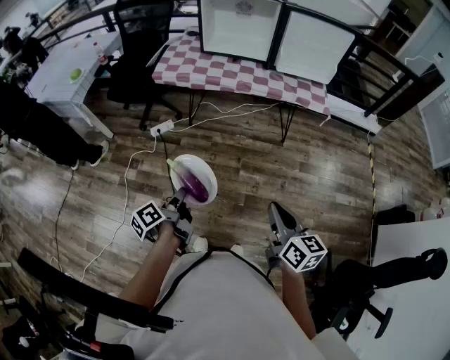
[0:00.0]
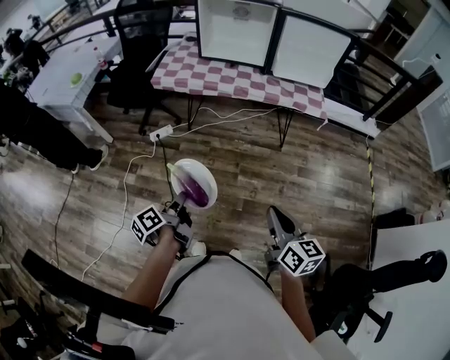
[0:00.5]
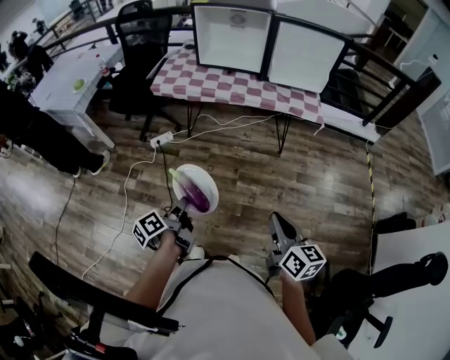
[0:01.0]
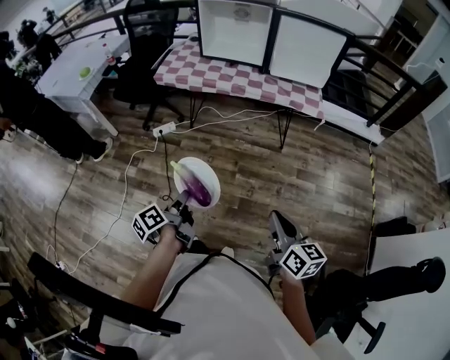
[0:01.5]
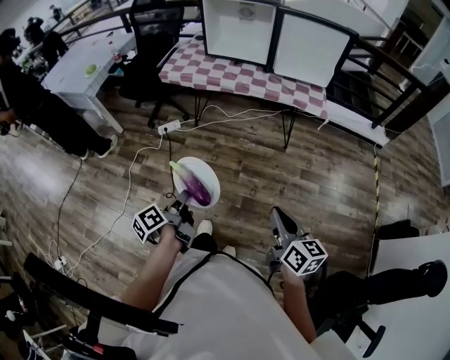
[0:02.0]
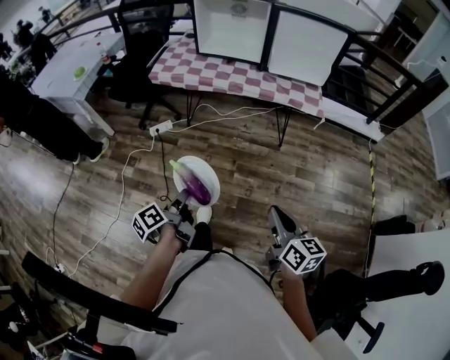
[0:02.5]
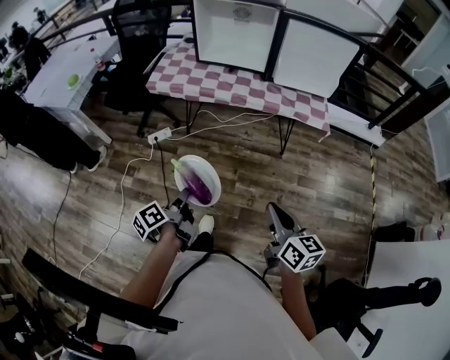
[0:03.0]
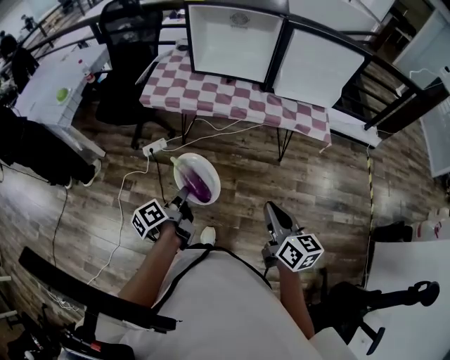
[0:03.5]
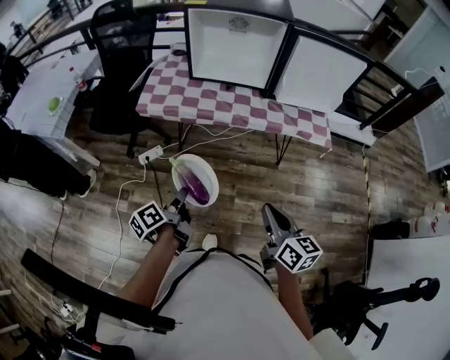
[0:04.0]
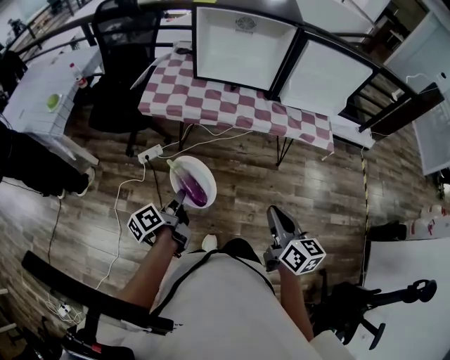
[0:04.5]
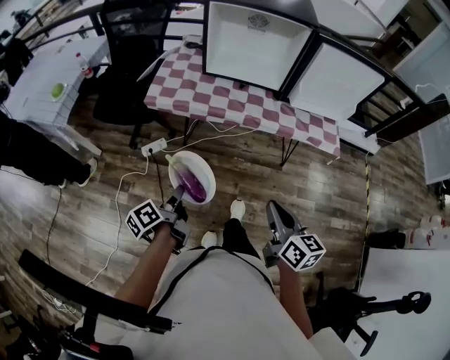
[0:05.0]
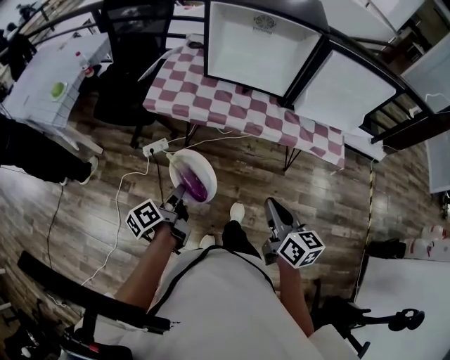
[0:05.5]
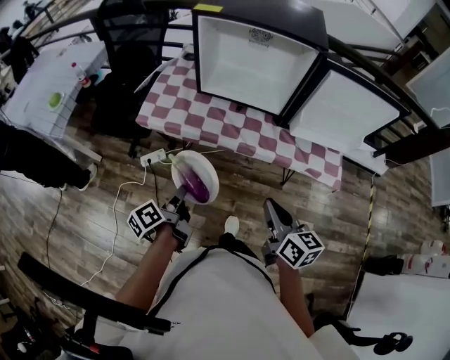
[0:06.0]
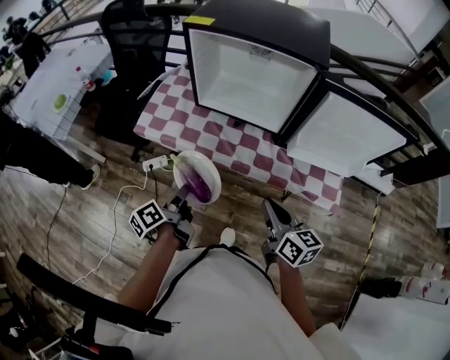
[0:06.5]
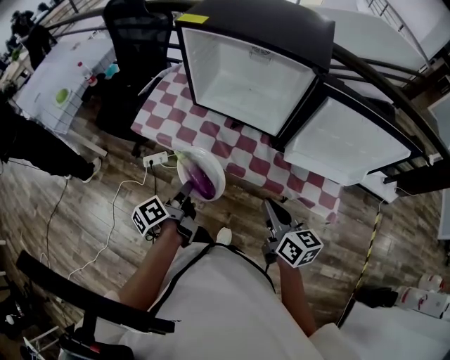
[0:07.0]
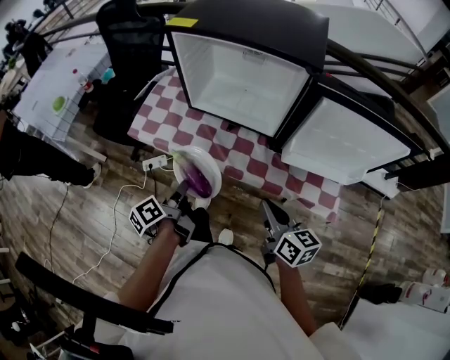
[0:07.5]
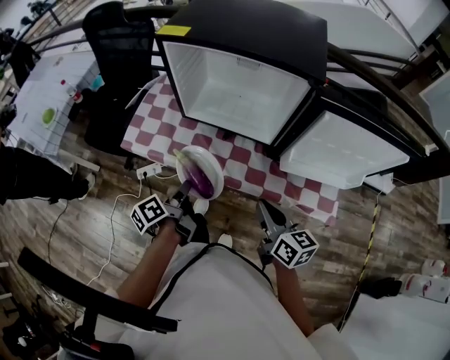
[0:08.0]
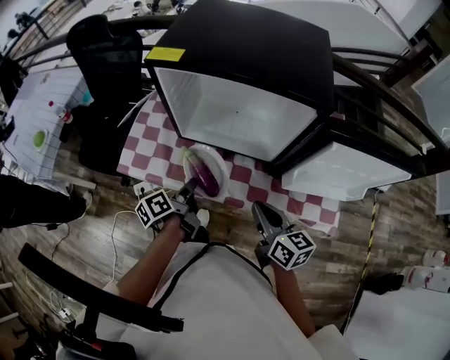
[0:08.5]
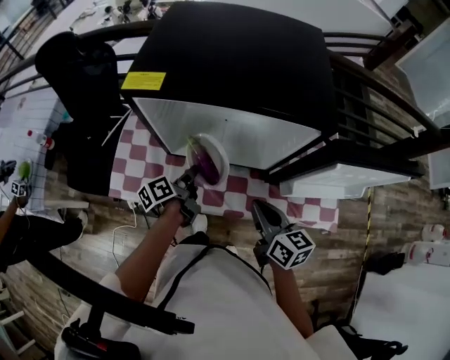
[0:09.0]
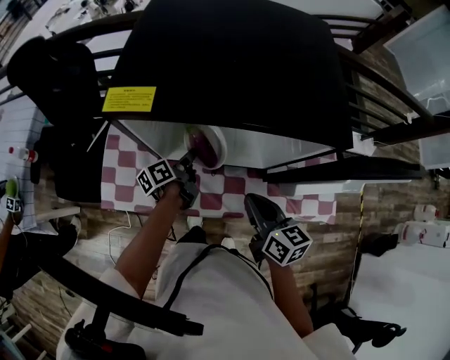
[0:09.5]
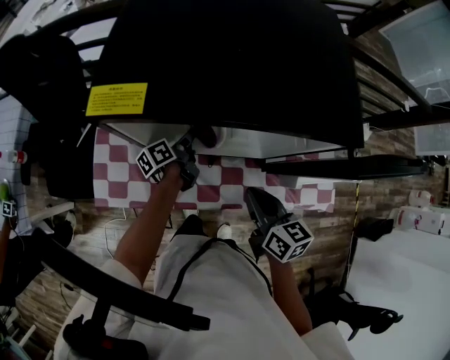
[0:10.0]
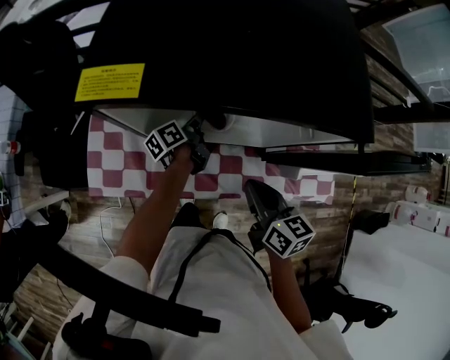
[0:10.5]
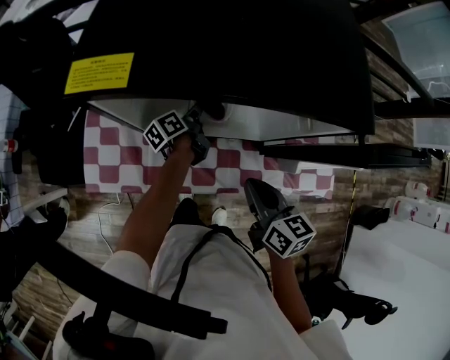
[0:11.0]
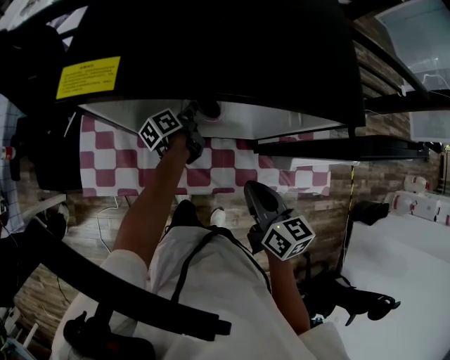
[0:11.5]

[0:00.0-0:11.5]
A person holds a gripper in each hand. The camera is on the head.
0:00.0 to 0:02.0: The right gripper moves roughly 10 cm.
0:02.0 to 0:04.0: The right gripper moves some 30 cm.
0:04.0 to 0:06.0: The right gripper moves approximately 20 cm.
0:06.0 to 0:07.5: The right gripper shifts by approximately 15 cm.
0:07.5 to 0:09.5: The right gripper ends up roughly 25 cm from where it was.

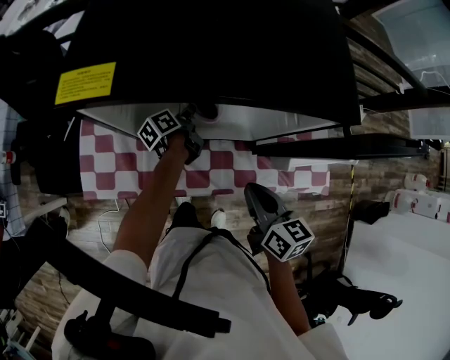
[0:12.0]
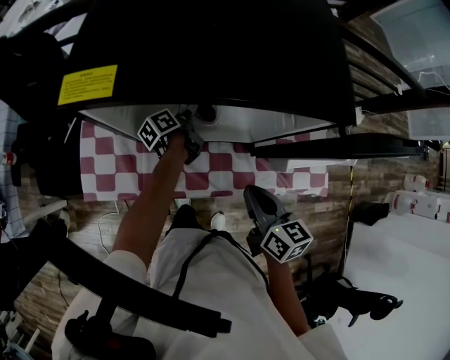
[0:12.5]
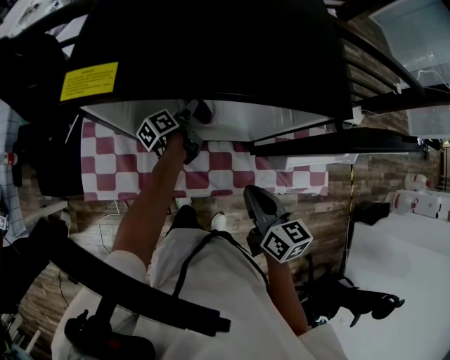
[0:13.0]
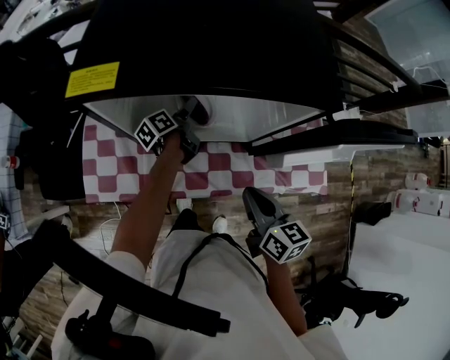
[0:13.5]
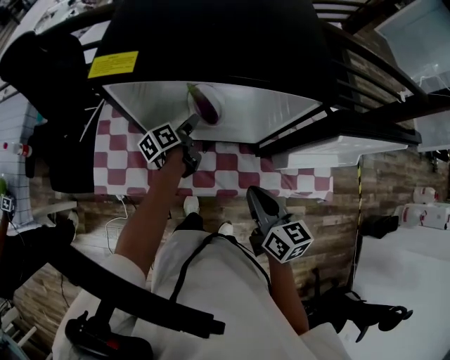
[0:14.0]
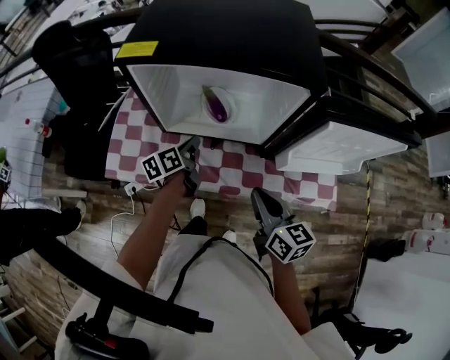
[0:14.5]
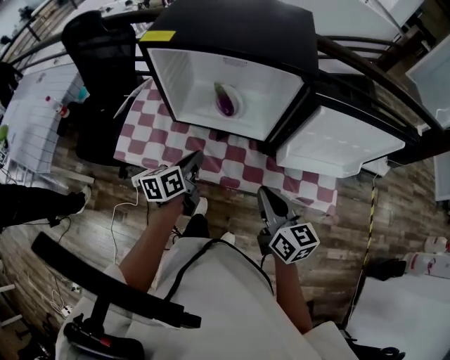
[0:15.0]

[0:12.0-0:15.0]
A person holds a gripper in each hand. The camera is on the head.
0:13.5 to 0:15.0: The right gripper moves roughly 10 cm.

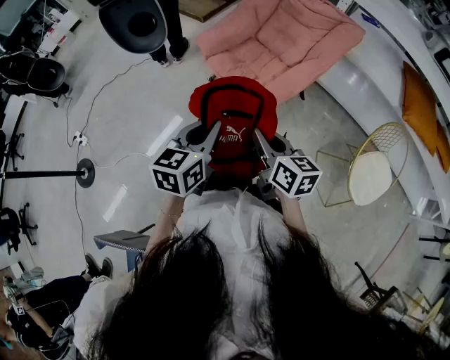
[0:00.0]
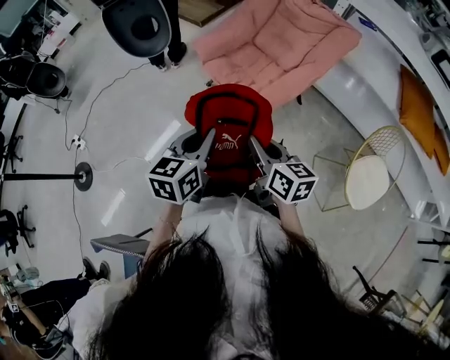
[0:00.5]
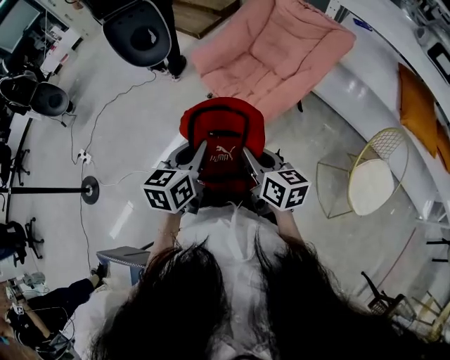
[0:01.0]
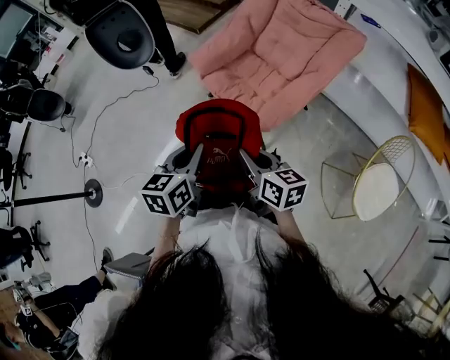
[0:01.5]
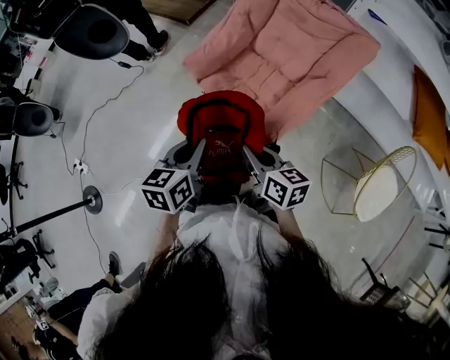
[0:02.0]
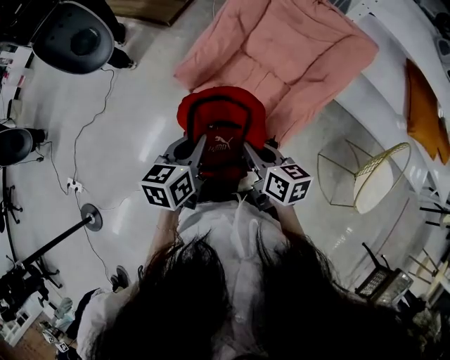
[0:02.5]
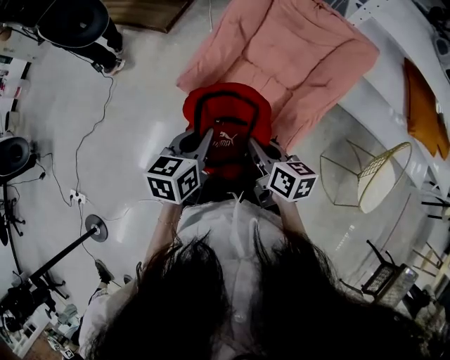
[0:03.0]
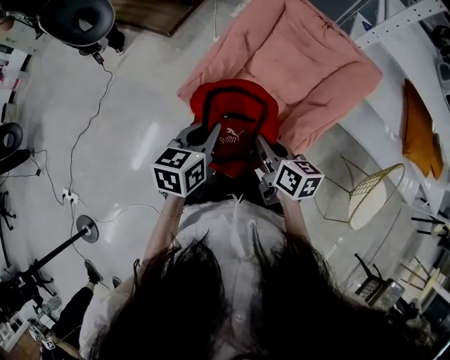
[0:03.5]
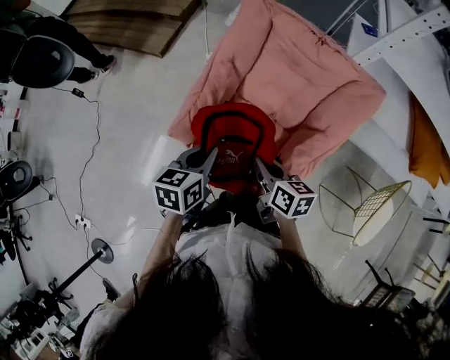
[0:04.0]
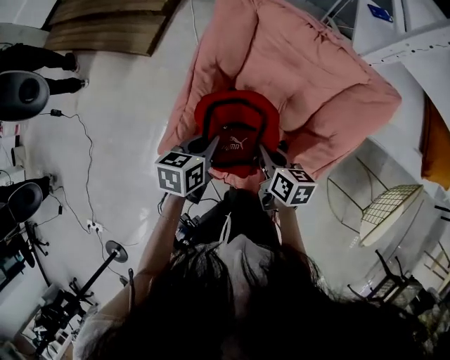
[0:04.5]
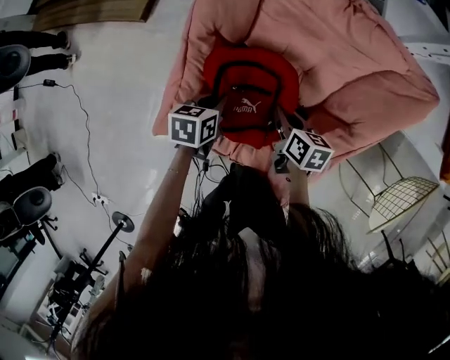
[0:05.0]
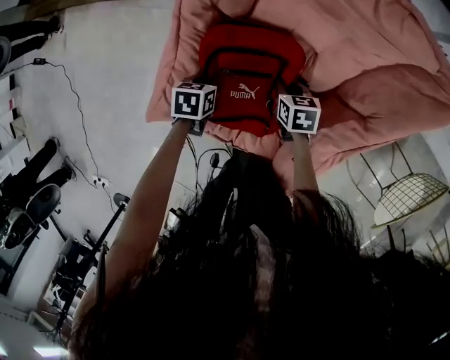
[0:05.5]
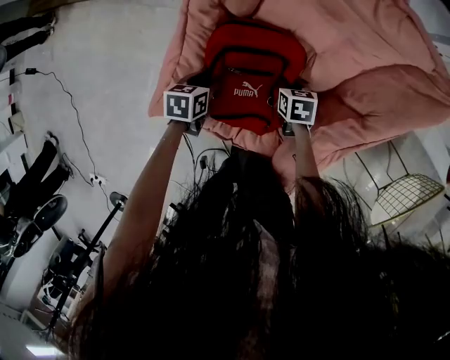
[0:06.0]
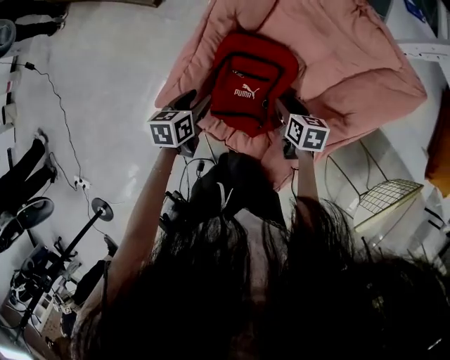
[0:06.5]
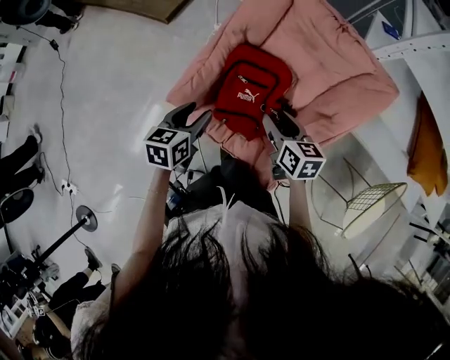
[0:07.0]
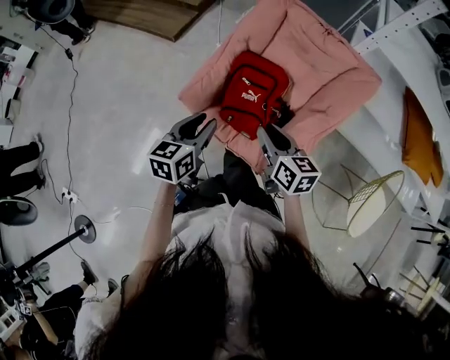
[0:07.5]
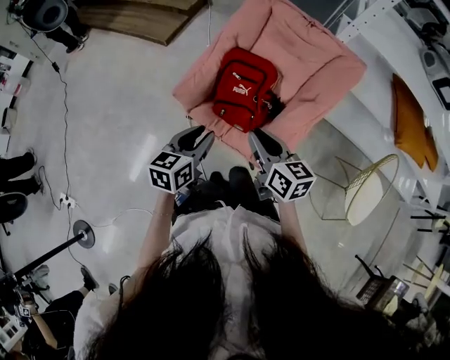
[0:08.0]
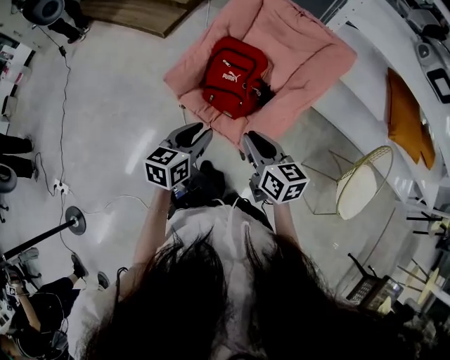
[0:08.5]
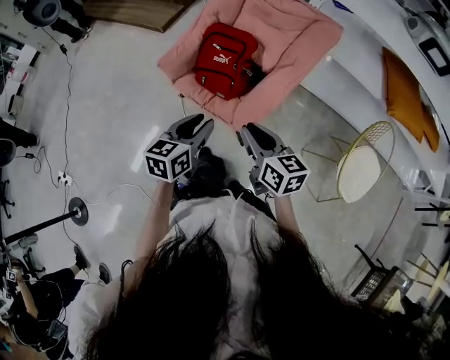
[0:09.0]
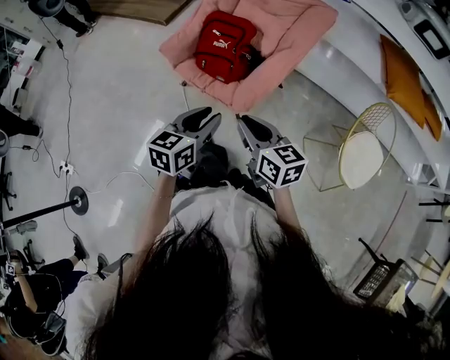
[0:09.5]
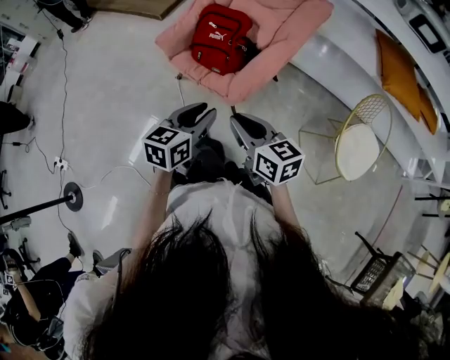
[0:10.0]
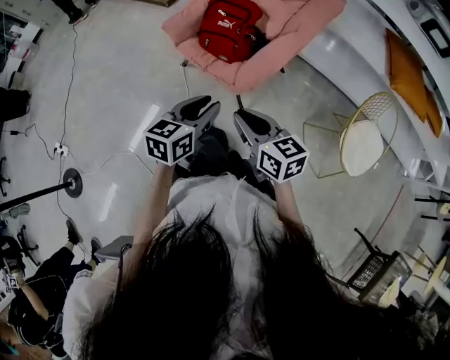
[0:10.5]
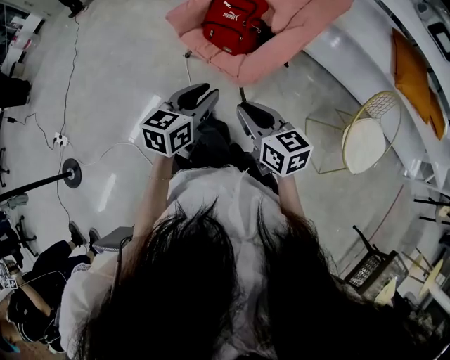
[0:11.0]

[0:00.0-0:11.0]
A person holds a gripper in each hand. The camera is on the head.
0:00.0 to 0:02.0: Both grippers travel together forward, roughly 20 cm.
0:02.0 to 0:03.5: Both grippers travel together forward, about 20 cm.
0:03.5 to 0:05.5: Both grippers travel together downward and forward, some 40 cm. The left gripper tilts its fingers about 40 degrees downward; the right gripper swivels approximately 30 degrees.
0:05.5 to 0:07.5: Both grippers travel together upward and backward, about 40 cm. The right gripper points its fingers roughly 30 degrees further upward, and opens and closes again. Meanwhile the left gripper points its fingers some 40 degrees further upward, and opens its fingers.
0:07.5 to 0:09.0: Both grippers travel together backward and to the right, some 25 cm.
0:09.0 to 0:11.0: The grippers both shift backward by approximately 15 cm.

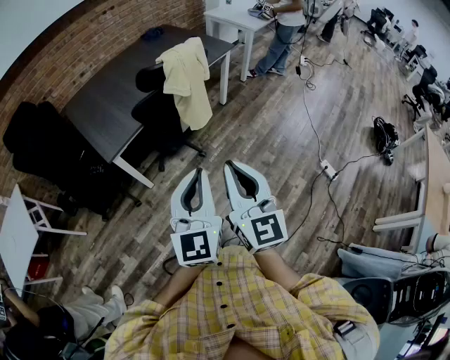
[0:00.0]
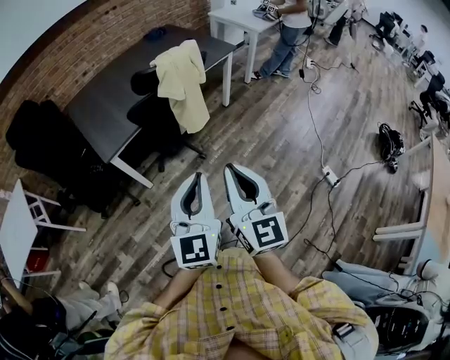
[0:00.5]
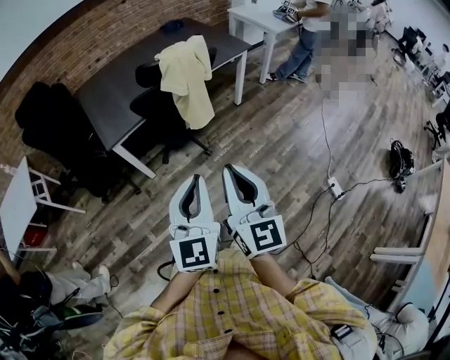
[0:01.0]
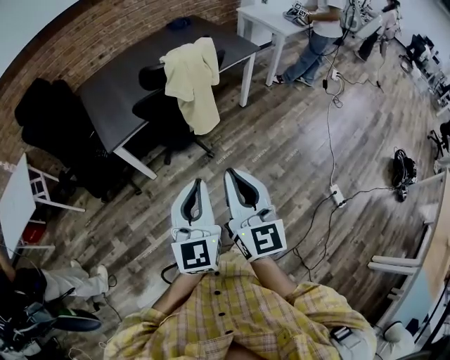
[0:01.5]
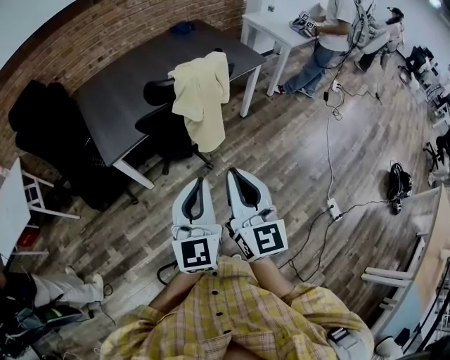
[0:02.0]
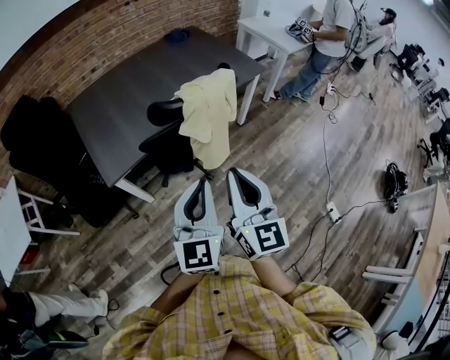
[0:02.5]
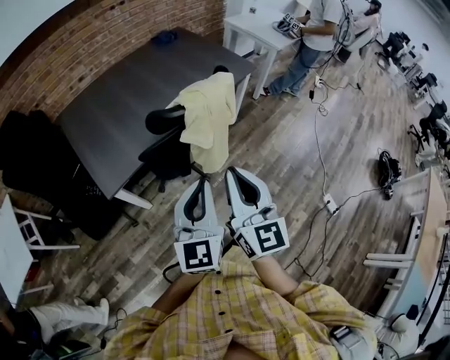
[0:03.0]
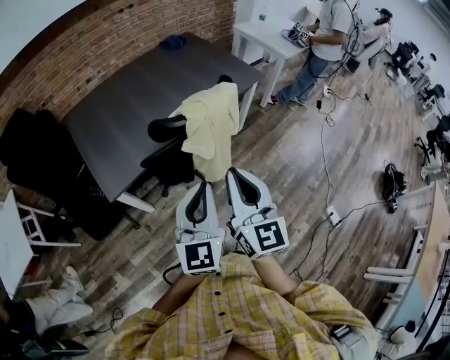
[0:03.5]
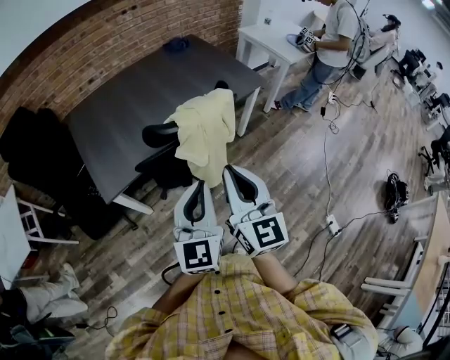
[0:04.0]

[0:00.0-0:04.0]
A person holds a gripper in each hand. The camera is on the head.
0:00.0 to 0:02.0: The grippers both shift forward by some 15 cm.
0:02.0 to 0:04.0: Both grippers travel together forward, about 15 cm.
